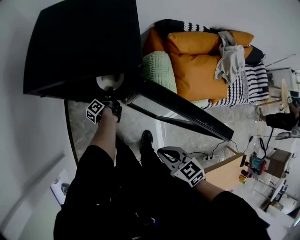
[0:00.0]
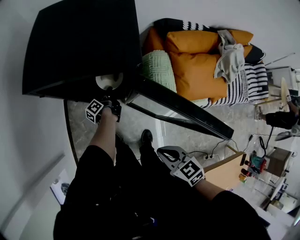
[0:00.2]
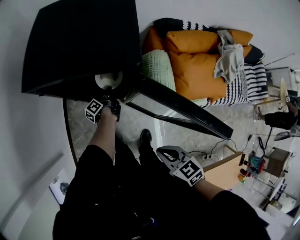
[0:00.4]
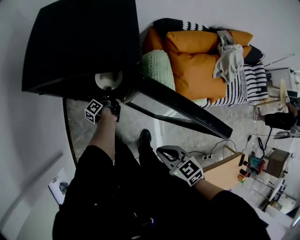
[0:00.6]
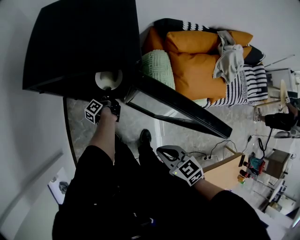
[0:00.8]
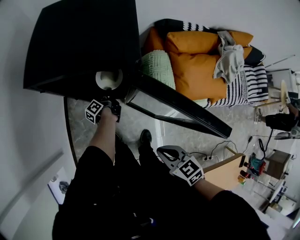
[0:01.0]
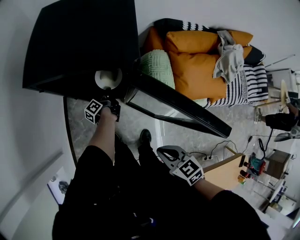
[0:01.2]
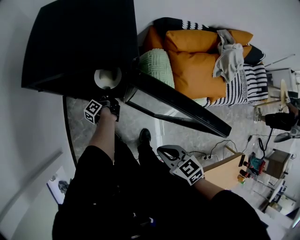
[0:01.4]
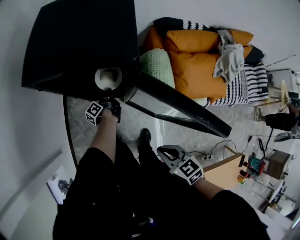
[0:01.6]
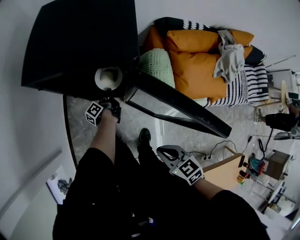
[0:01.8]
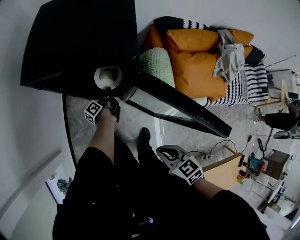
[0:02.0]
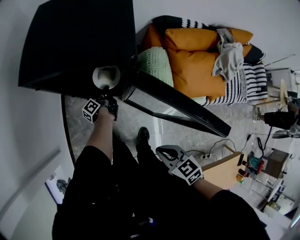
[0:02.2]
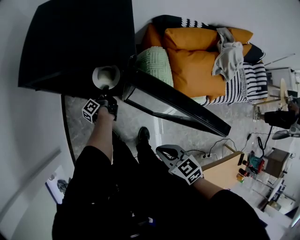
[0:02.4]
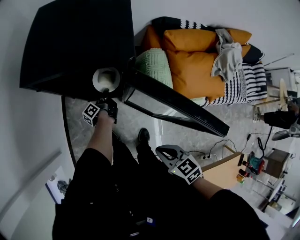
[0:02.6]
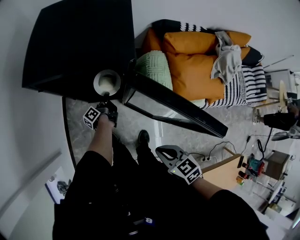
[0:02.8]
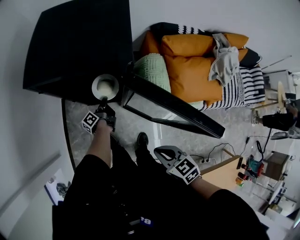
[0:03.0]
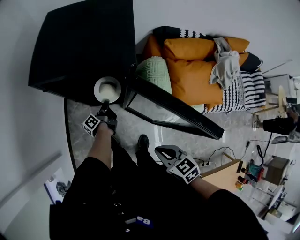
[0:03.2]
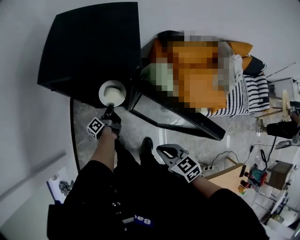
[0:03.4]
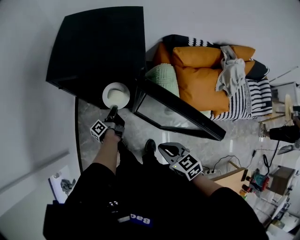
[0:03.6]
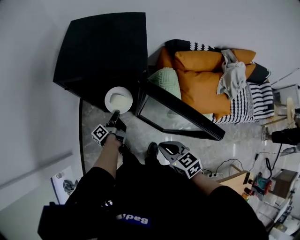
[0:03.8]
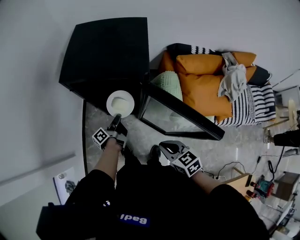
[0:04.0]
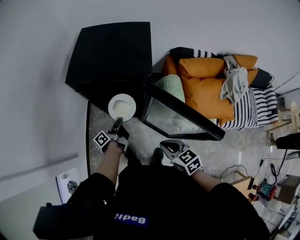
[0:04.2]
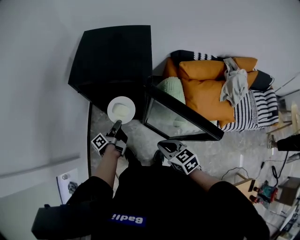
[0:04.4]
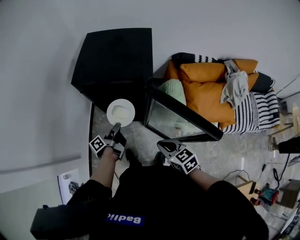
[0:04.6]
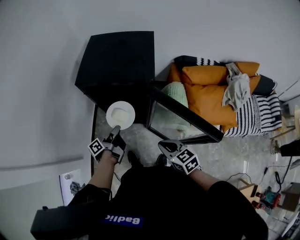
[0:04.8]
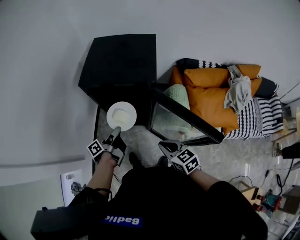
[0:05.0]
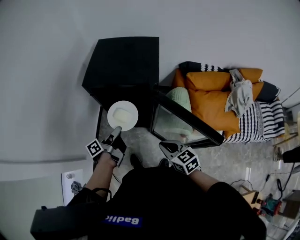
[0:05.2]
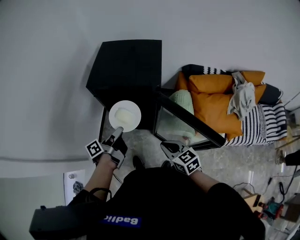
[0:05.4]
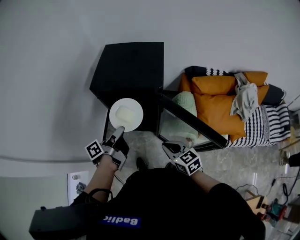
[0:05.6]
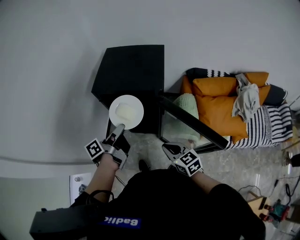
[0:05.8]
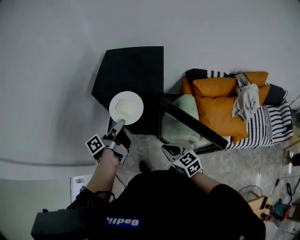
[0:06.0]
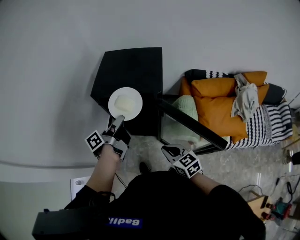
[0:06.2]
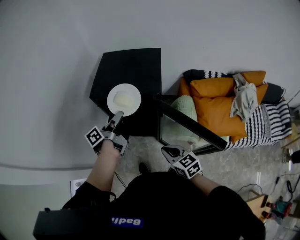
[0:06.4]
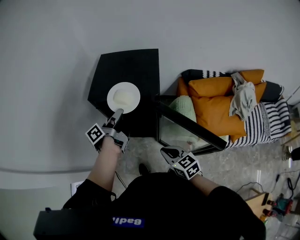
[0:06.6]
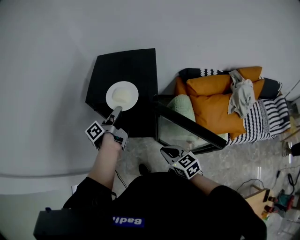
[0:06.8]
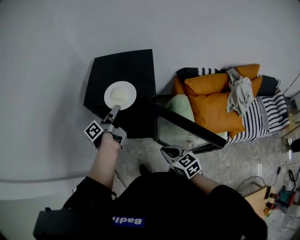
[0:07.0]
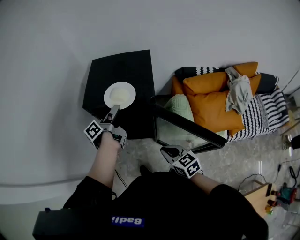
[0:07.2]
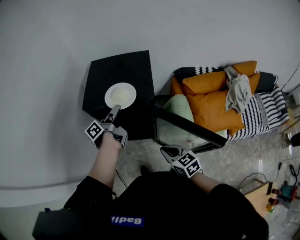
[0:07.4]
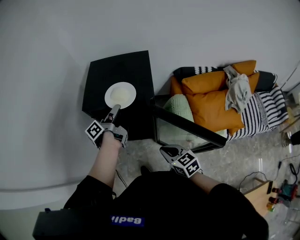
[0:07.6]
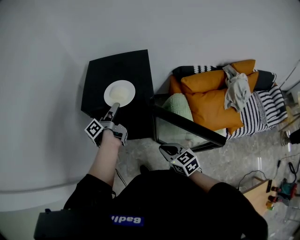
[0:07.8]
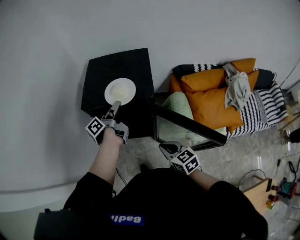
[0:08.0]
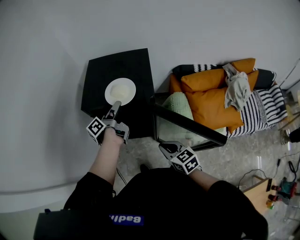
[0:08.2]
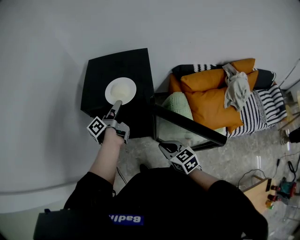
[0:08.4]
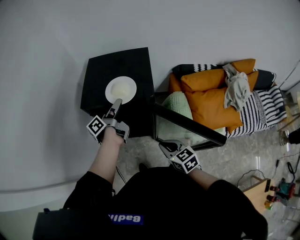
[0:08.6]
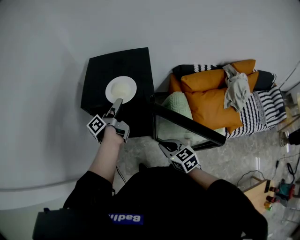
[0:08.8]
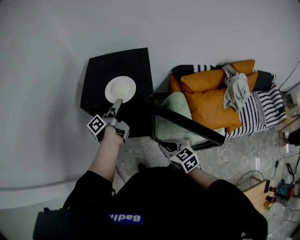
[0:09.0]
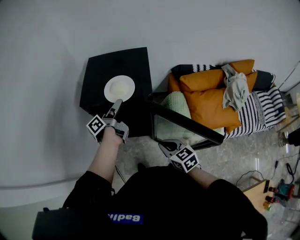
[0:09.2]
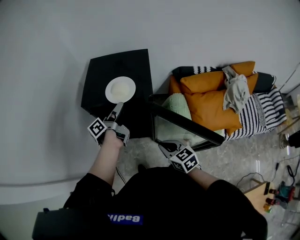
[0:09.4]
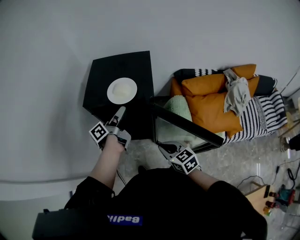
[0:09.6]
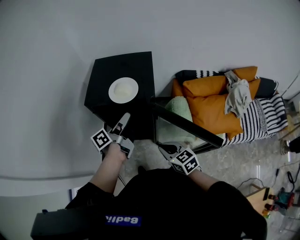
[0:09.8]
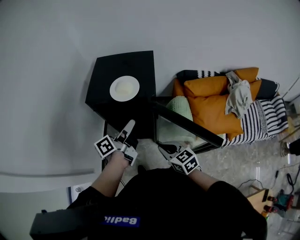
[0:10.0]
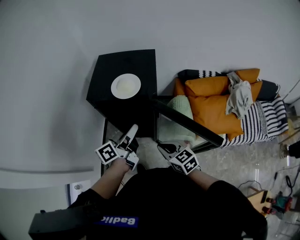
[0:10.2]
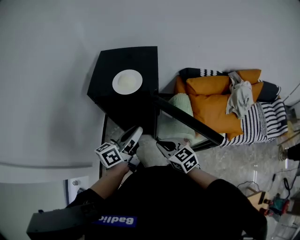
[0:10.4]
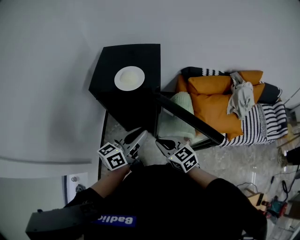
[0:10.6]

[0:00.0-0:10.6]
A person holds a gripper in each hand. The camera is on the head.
0:00.0 to 0:03.0: The grippers make only small movements.
0:03.0 to 0:04.6: The right gripper is displaced upward by roughly 5 cm. The left gripper is displaced upward, backward and to the left by some 20 cm.
0:04.6 to 0:06.0: The left gripper goes approximately 20 cm upward.
0:06.0 to 0:07.6: The left gripper moves forward, about 10 cm.
0:07.6 to 0:09.0: The grippers stay close to where they were, moving slightly.
0:09.0 to 0:10.6: The left gripper shifts roughly 20 cm backward, and twists roughly 40 degrees clockwise, seen from behind.

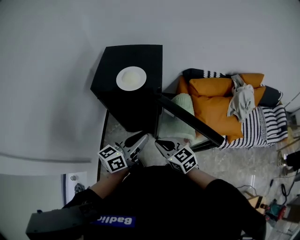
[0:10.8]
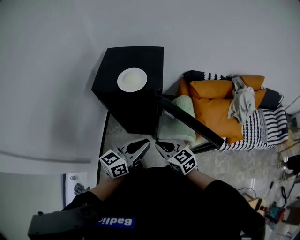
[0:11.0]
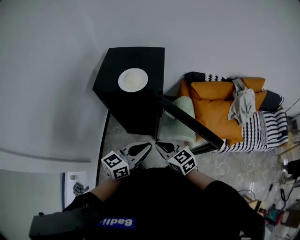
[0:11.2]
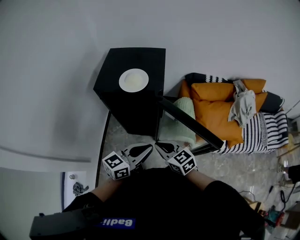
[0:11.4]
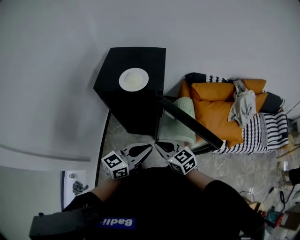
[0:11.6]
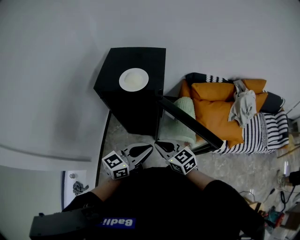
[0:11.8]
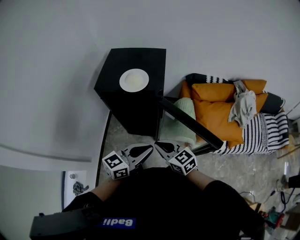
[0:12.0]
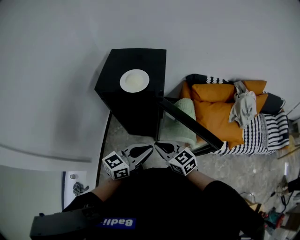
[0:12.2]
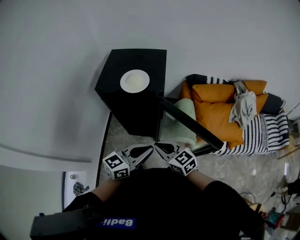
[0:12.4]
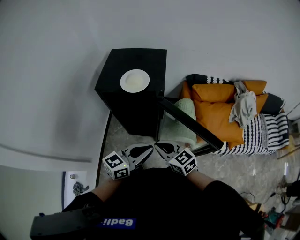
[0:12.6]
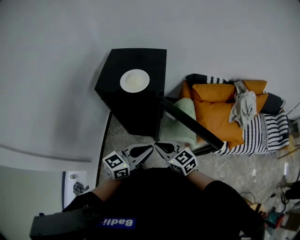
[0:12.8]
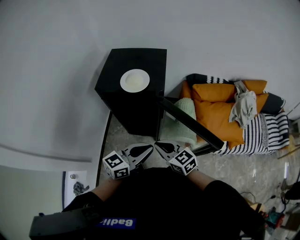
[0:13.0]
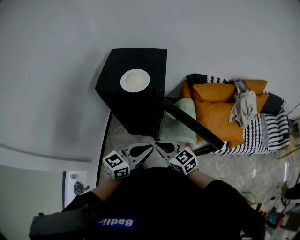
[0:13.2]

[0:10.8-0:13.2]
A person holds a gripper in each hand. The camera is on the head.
0:10.8 to 0:12.0: The left gripper moves about 5 cm.
0:12.0 to 0:13.2: Both grippers stay put.

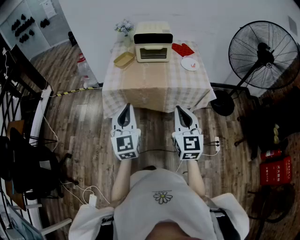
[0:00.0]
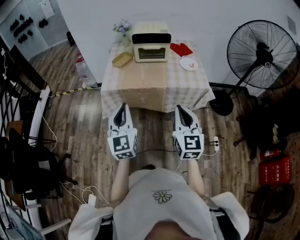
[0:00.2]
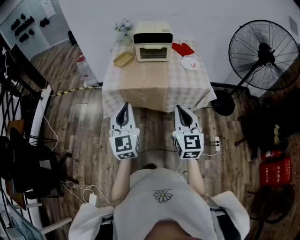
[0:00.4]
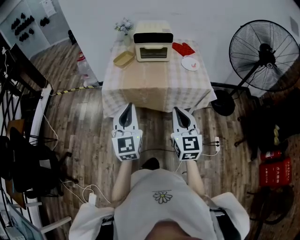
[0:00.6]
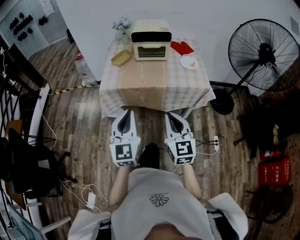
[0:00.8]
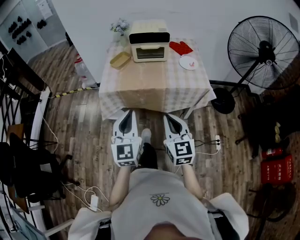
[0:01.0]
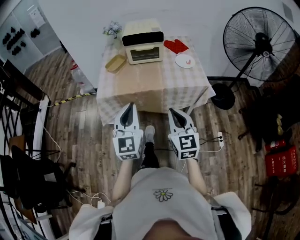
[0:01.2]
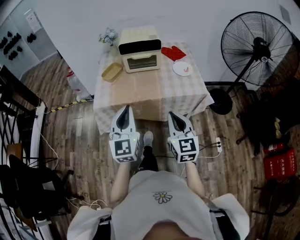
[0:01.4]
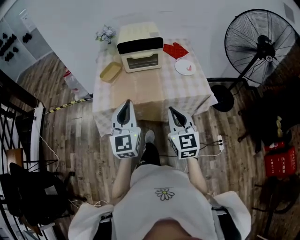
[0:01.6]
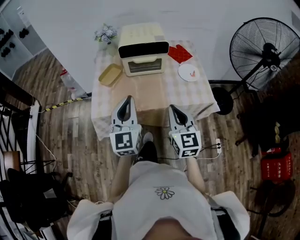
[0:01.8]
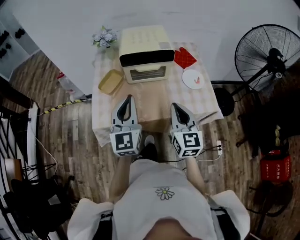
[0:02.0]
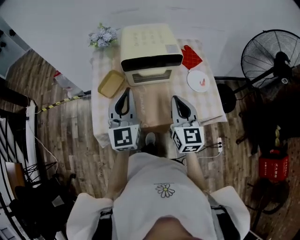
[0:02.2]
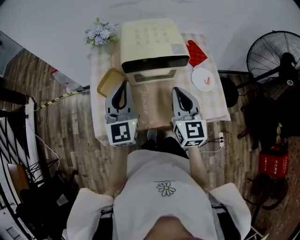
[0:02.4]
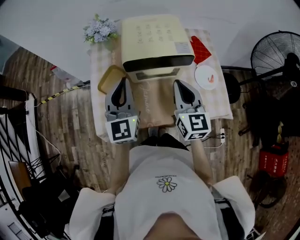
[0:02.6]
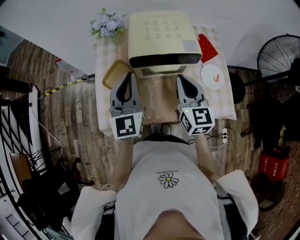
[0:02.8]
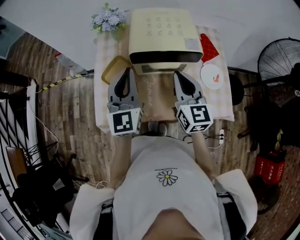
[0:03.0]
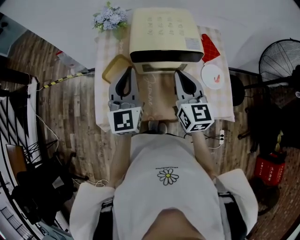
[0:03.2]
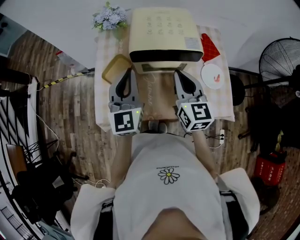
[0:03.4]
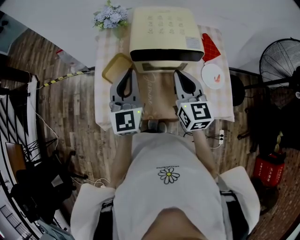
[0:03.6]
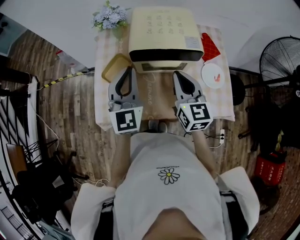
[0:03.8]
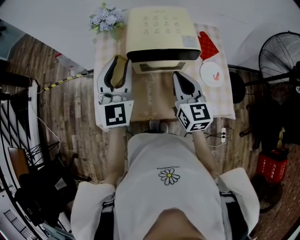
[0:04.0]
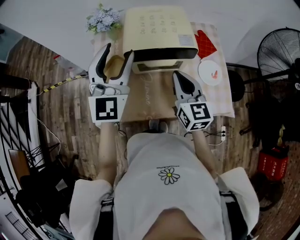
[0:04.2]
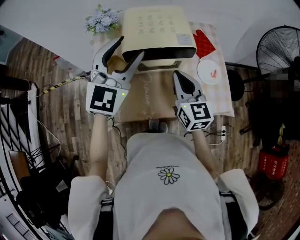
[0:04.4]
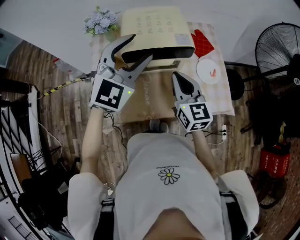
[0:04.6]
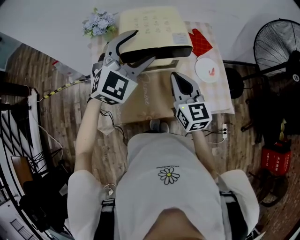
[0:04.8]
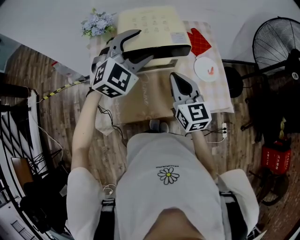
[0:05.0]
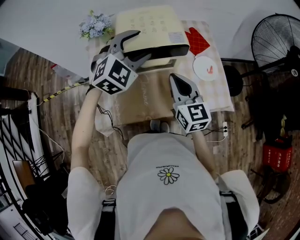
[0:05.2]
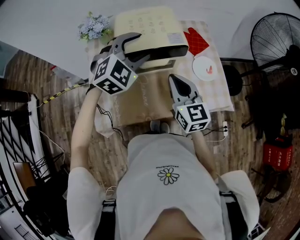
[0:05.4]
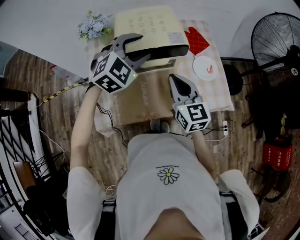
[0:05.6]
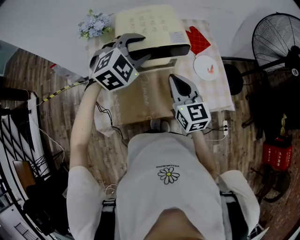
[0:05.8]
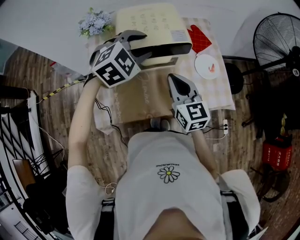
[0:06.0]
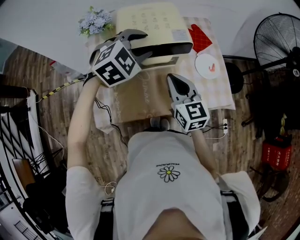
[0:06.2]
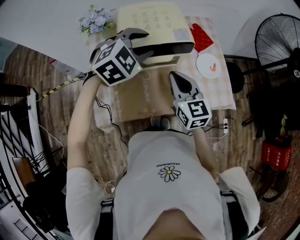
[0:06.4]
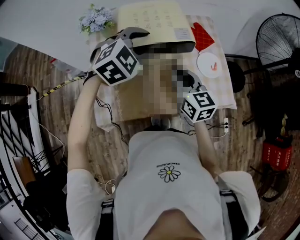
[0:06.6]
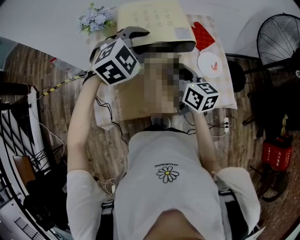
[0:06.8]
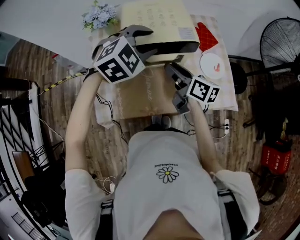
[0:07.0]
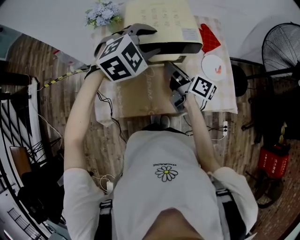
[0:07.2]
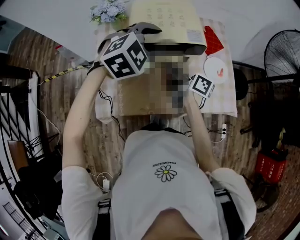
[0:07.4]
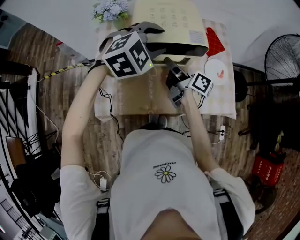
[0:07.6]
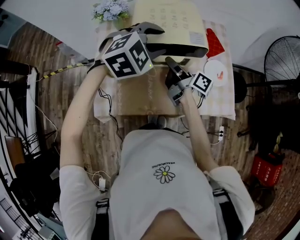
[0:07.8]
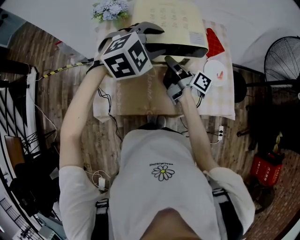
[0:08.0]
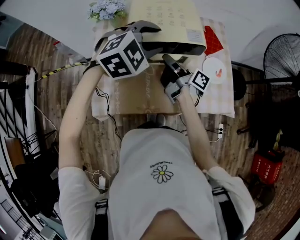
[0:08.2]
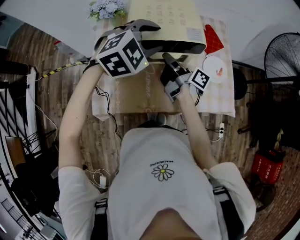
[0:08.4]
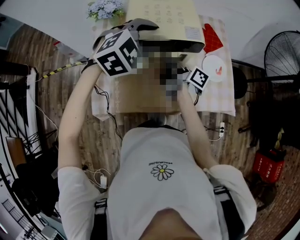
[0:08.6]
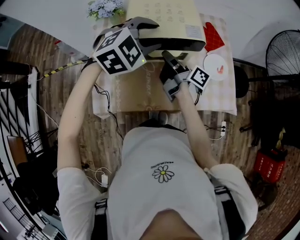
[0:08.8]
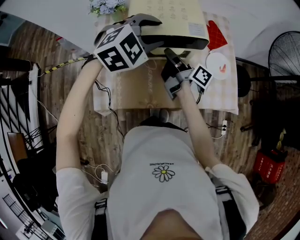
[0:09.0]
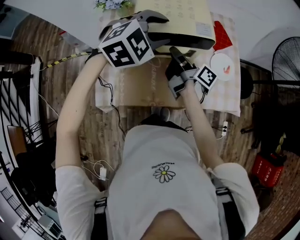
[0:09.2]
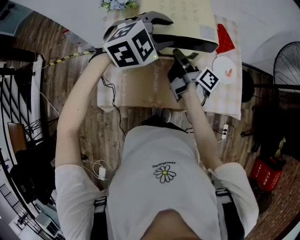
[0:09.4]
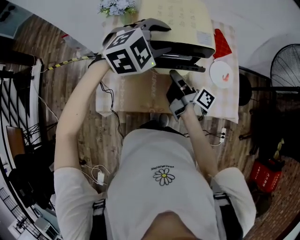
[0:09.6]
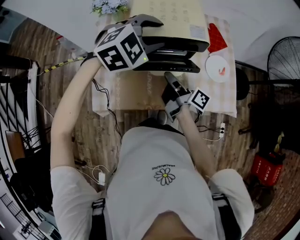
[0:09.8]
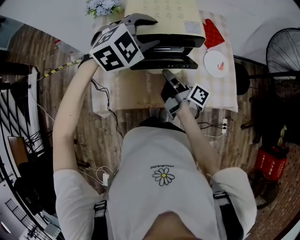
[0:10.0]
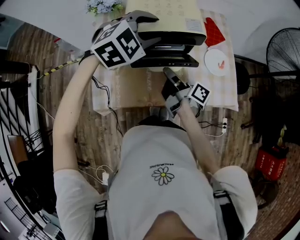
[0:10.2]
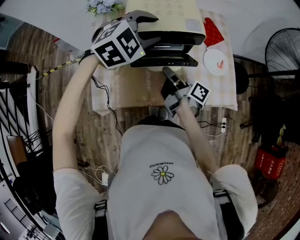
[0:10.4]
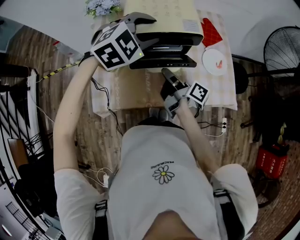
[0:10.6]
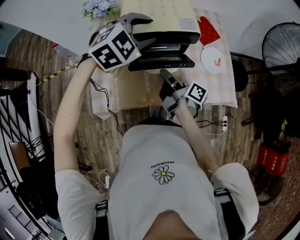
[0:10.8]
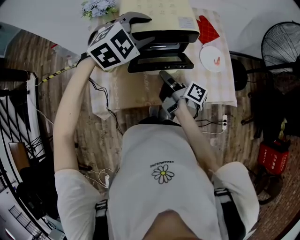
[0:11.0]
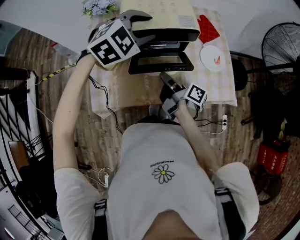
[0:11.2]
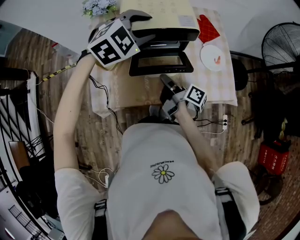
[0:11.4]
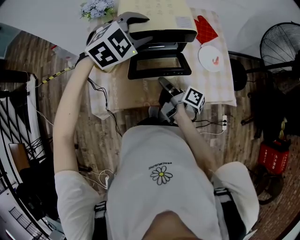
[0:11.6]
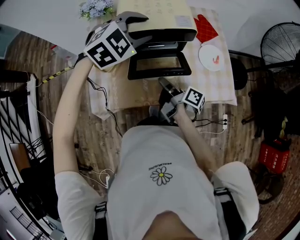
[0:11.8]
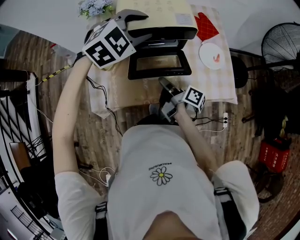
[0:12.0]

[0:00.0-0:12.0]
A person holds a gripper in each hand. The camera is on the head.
0:00.0 to 0:01.6: The two grippers go some 15 cm forward.
0:01.6 to 0:03.0: The two grippers go some 35 cm forward.
0:03.0 to 0:04.4: The left gripper heads upward and to the right, covering approximately 10 cm, rotates some 40 degrees, and opens.
0:04.4 to 0:06.0: The left gripper travels downward by some 10 cm, and points its fingers approximately 40 degrees further downward.
0:06.0 to 0:07.6: The right gripper goes approximately 10 cm forward and downward, twists approximately 60 degrees clockwise, seen from behind, and opens up.
0:07.6 to 0:09.0: The grippers stay close to where they were, moving slightly.
0:09.0 to 0:10.4: The right gripper travels backward by some 10 cm.
0:10.4 to 0:12.0: The right gripper changes place by approximately 5 cm.
